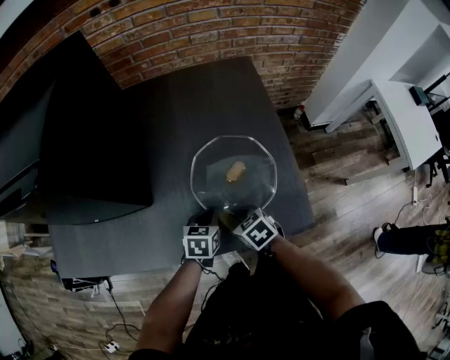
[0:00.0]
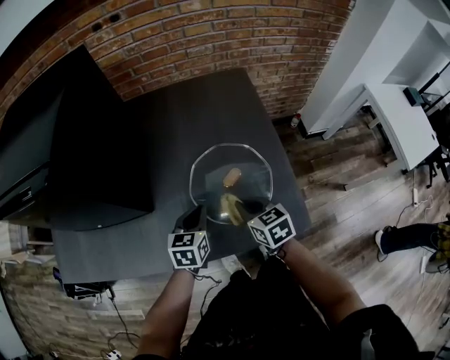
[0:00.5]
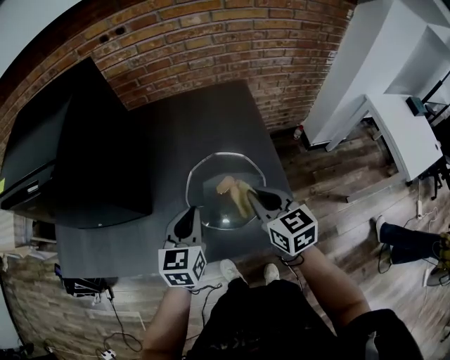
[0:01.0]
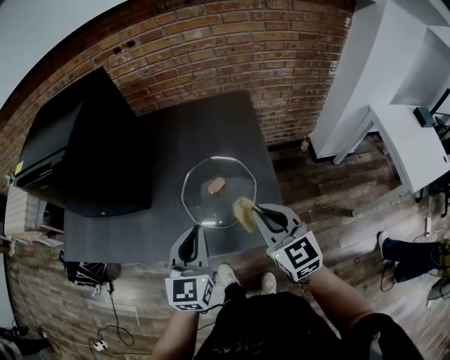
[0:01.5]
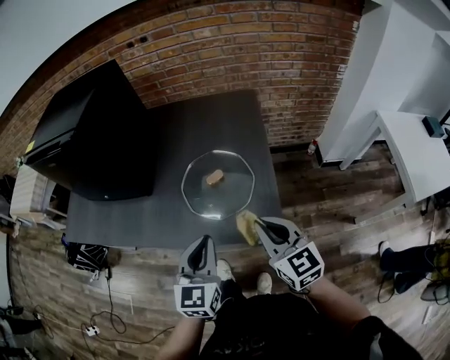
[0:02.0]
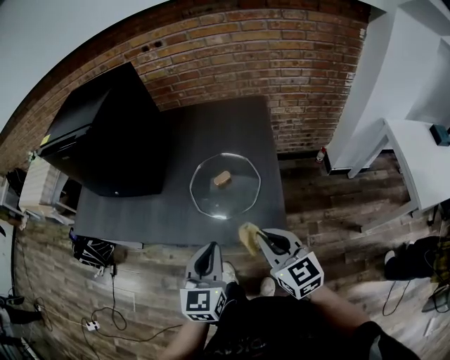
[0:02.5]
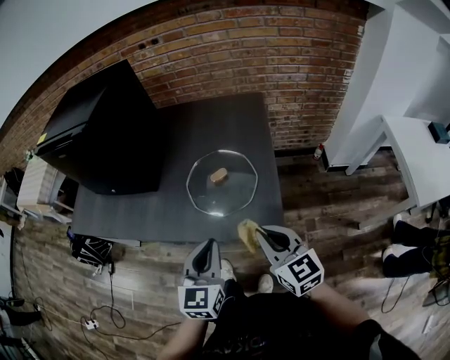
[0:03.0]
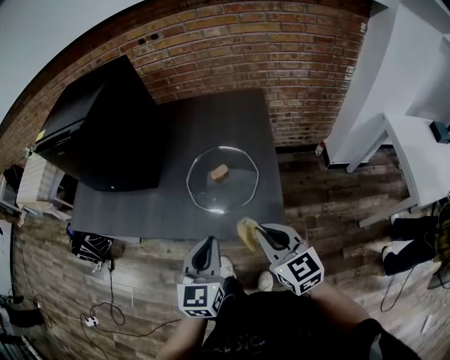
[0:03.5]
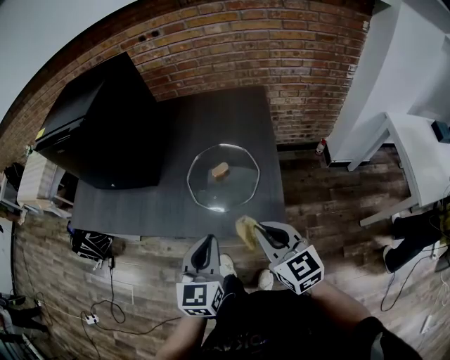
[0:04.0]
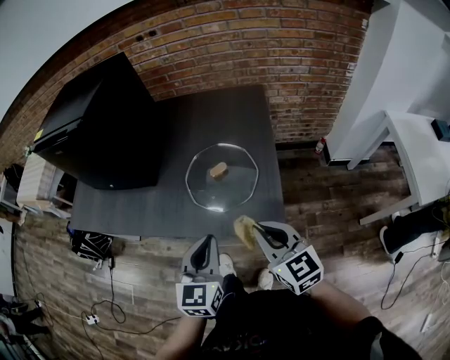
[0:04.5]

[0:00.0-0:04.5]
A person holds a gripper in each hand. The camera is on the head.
0:00.0 to 0:02.0: The left gripper moves upward and backward, about 30 cm, and tilts its fingers roughly 30 degrees upward. Meanwhile the right gripper shifts about 30 cm upward, to the right and backward, and tips its fingers upward by approximately 40 degrees.
0:02.0 to 0:04.5: The grippers make only small movements.

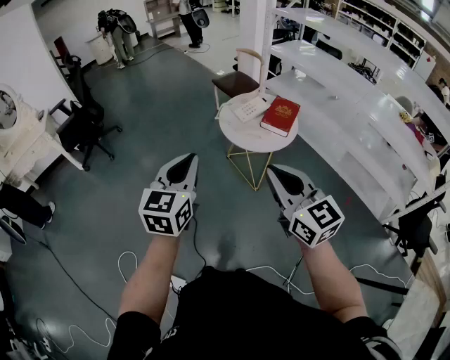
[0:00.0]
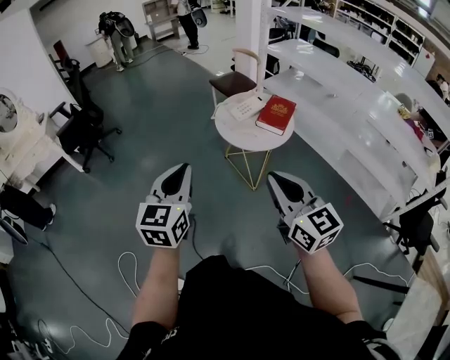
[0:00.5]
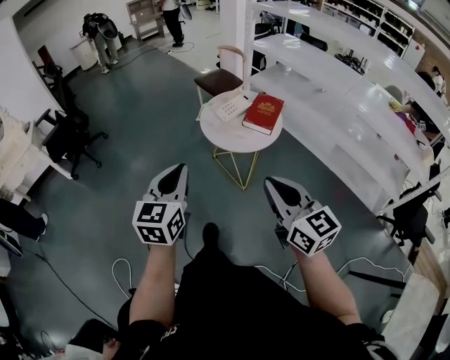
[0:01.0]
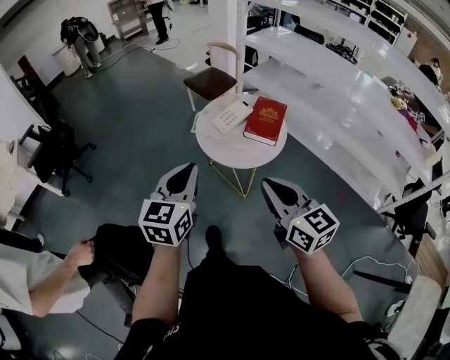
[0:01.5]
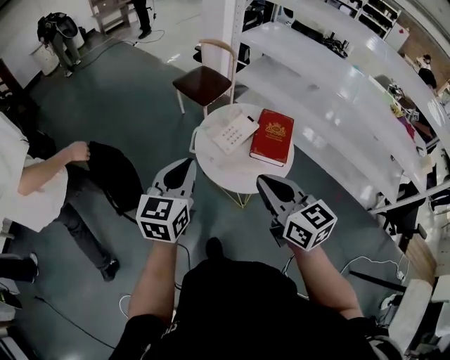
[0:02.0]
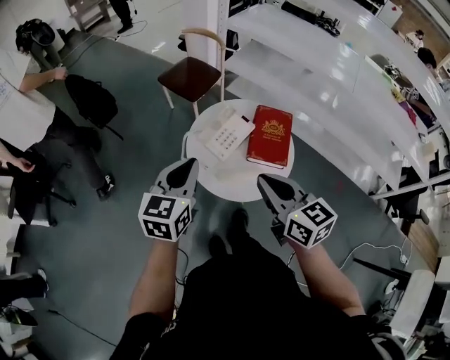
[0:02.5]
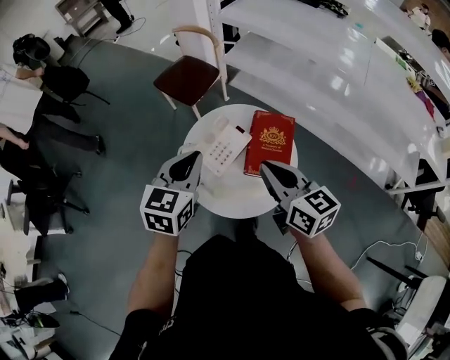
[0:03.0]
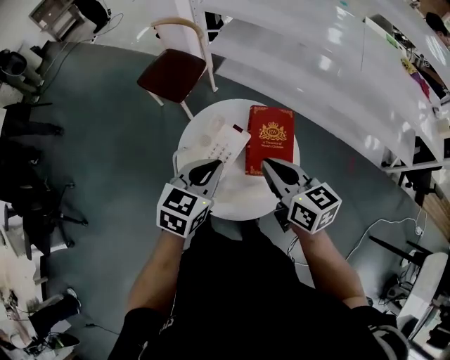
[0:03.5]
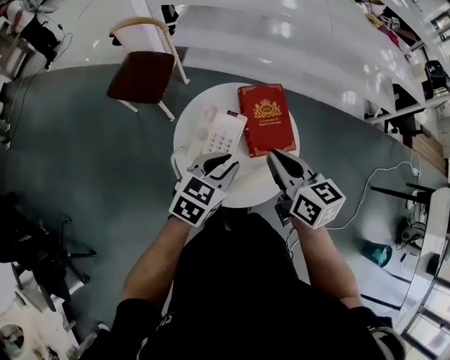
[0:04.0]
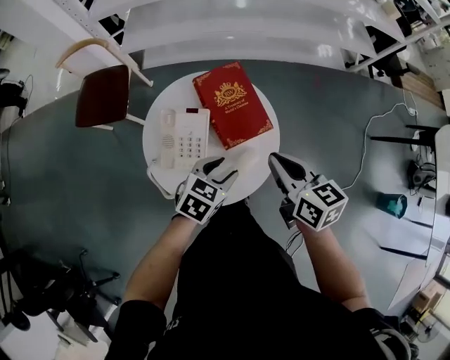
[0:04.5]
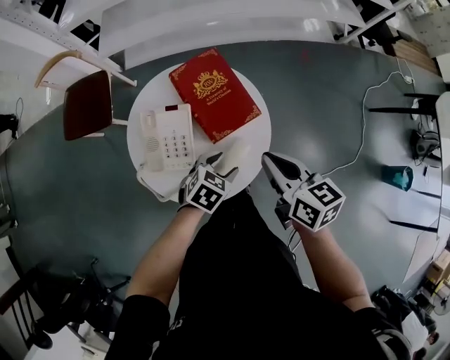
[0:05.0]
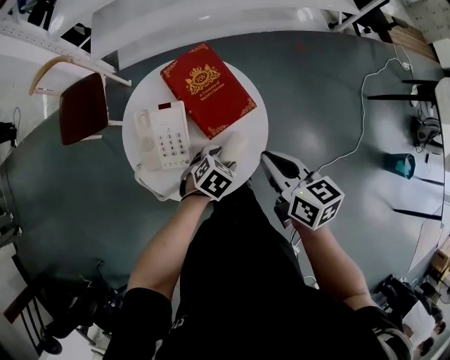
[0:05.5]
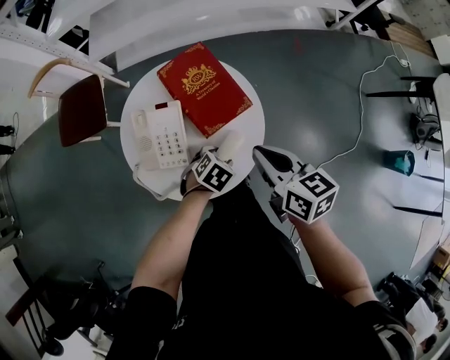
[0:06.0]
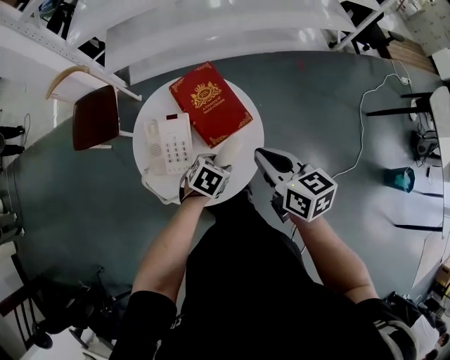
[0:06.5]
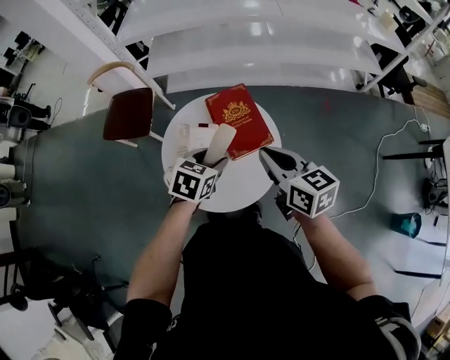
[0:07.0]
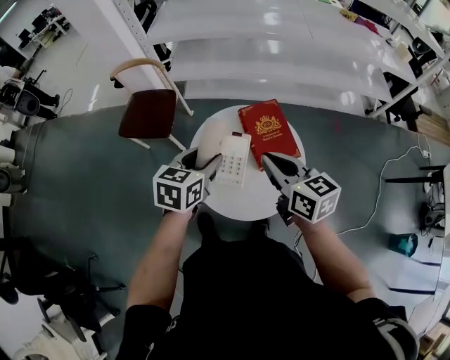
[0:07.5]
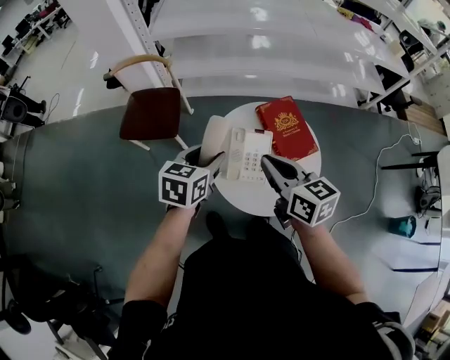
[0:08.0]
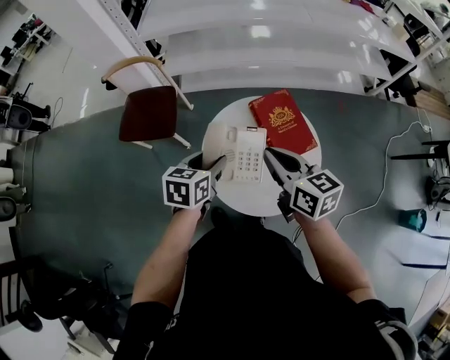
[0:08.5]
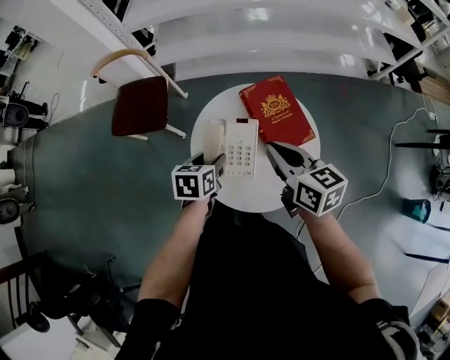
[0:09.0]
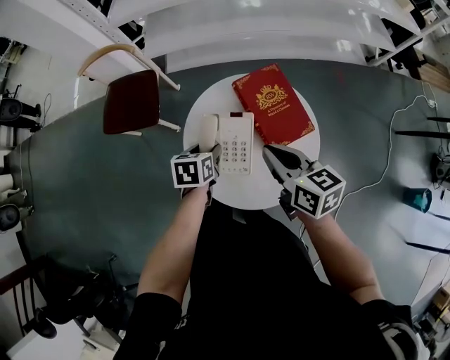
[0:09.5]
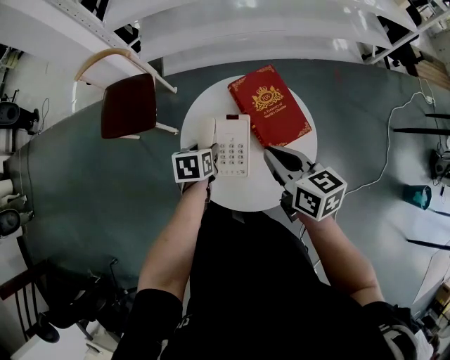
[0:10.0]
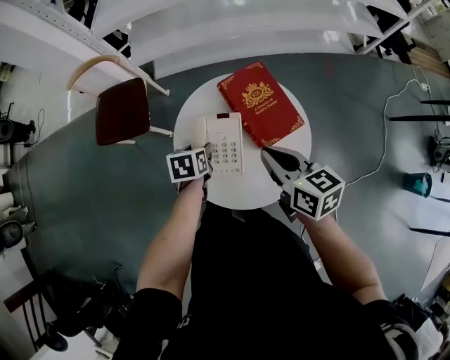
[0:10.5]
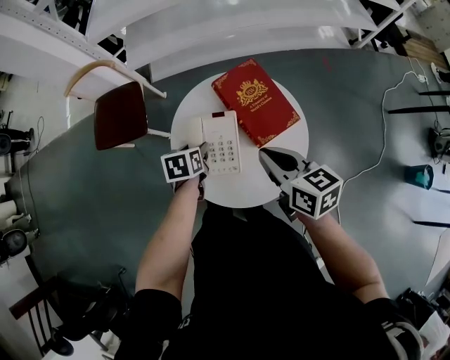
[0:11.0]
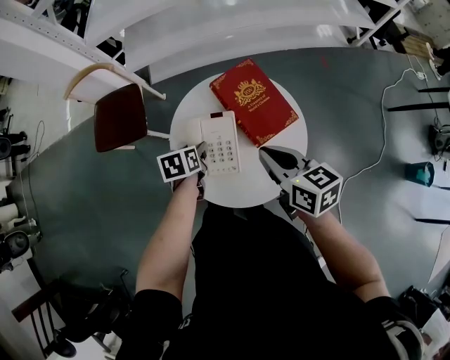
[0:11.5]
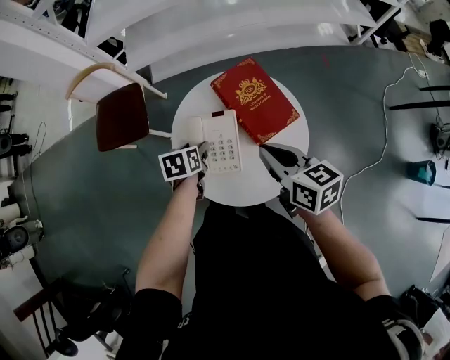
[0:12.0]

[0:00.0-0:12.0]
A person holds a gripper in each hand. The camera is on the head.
0:00.0 to 0:02.0: Both grippers move forward, some 35 cm.
0:02.0 to 0:04.0: The right gripper ends up approximately 25 cm from where it was, and rotates roughly 40 degrees; the left gripper moves roughly 30 cm, and rotates approximately 60 degrees.
0:04.0 to 0:06.0: The right gripper ends up approximately 15 cm from where it was, and rotates about 20 degrees. The left gripper is displaced downward by some 25 cm, angles its fingers downward, by some 30 degrees, and opens its fingers.
0:06.0 to 0:08.0: The right gripper ends up about 30 cm from where it was. Meanwhile the left gripper changes place by approximately 40 cm, and tilts its fingers roughly 30 degrees upward.
0:08.0 to 0:10.0: The right gripper heads to the right and downward, covering some 15 cm. Meanwhile the left gripper travels downward by approximately 20 cm, and swivels approximately 30 degrees.
0:10.0 to 0:12.0: The grippers make only small movements.

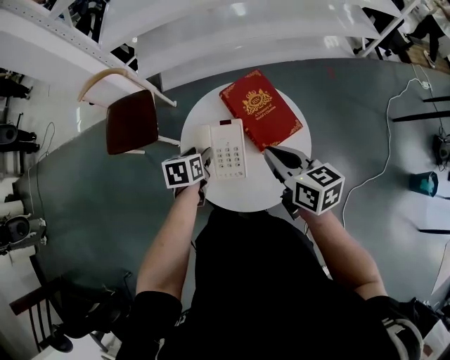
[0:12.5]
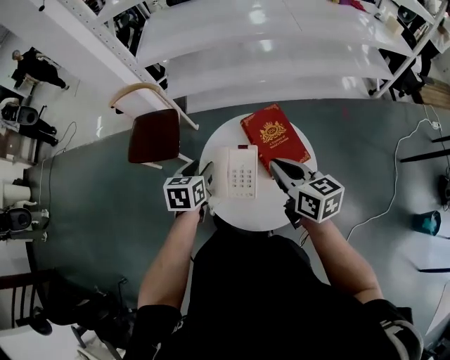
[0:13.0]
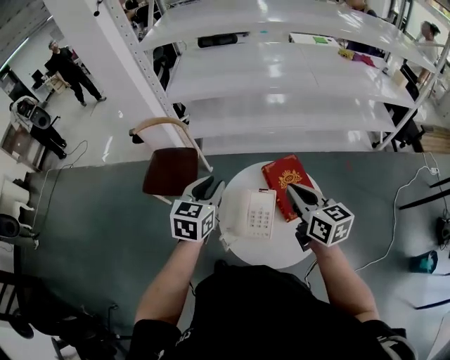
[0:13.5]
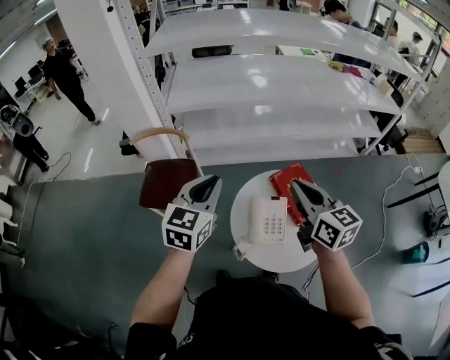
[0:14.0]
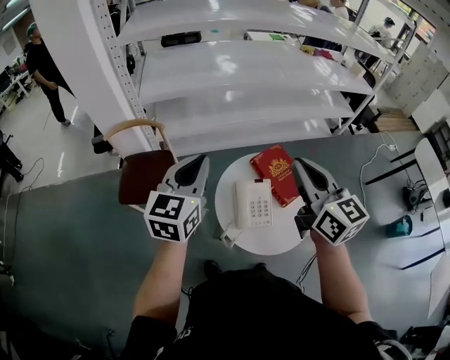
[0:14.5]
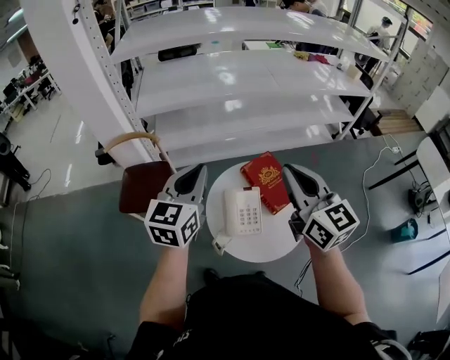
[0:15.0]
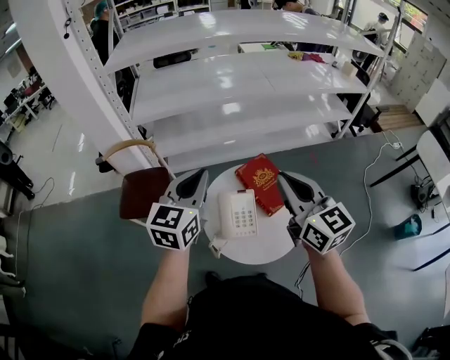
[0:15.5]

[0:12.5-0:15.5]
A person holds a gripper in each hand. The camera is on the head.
0:12.5 to 0:14.0: The right gripper travels upward and to the left by about 25 cm, and swivels some 20 degrees; the left gripper travels upward by approximately 35 cm, points its fingers approximately 40 degrees further upward, and closes.
0:14.0 to 0:15.5: The right gripper shifts about 10 cm to the right and upward; the left gripper moves to the right, approximately 10 cm.

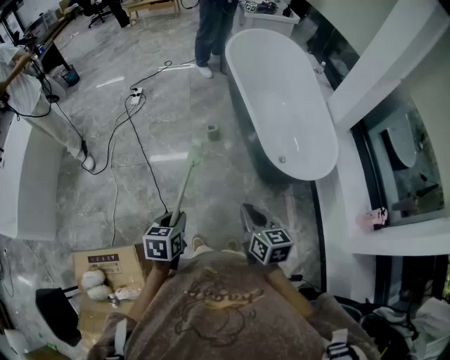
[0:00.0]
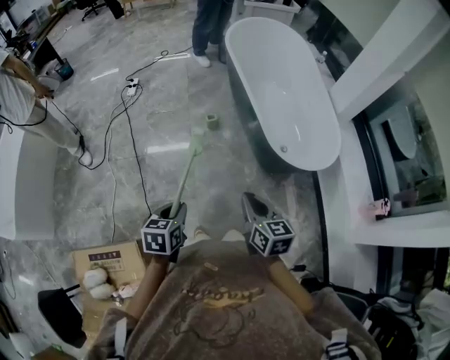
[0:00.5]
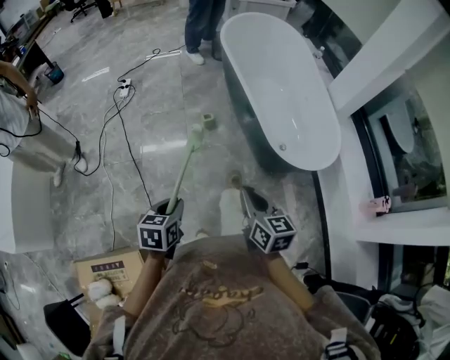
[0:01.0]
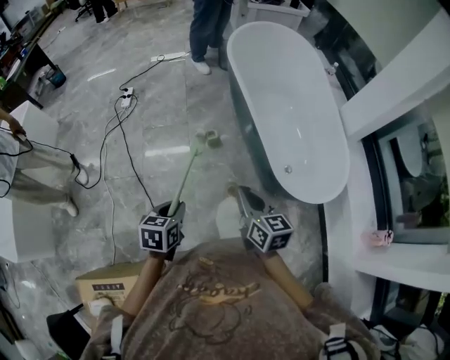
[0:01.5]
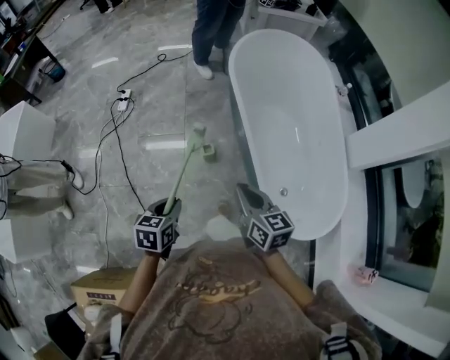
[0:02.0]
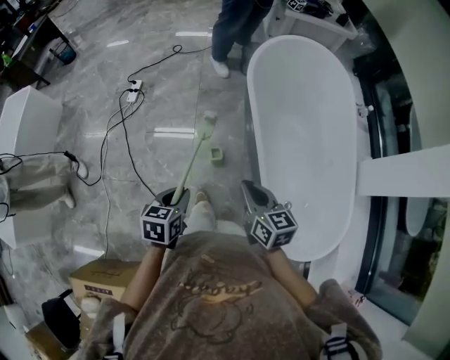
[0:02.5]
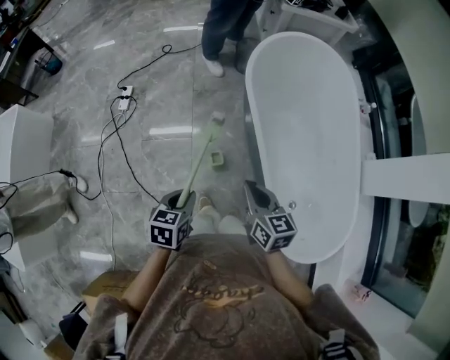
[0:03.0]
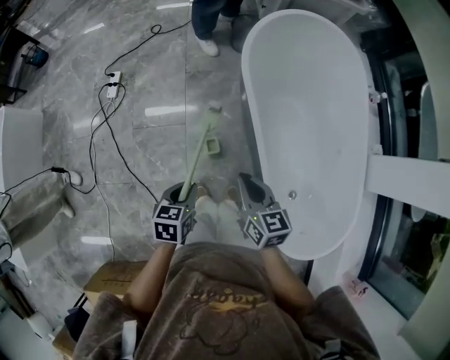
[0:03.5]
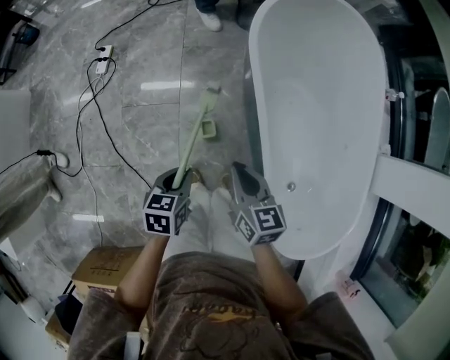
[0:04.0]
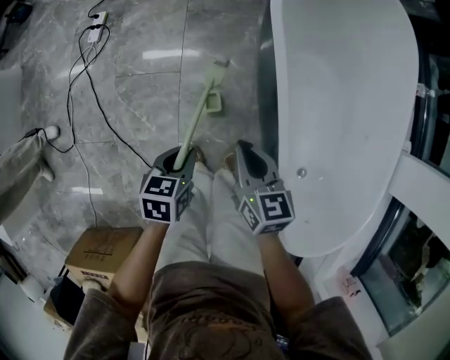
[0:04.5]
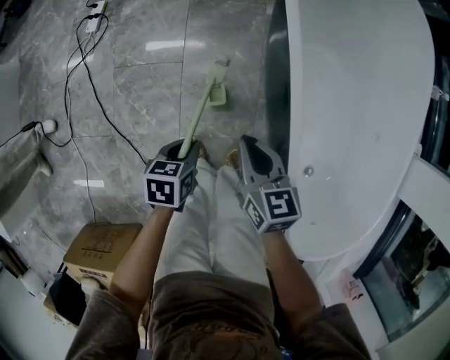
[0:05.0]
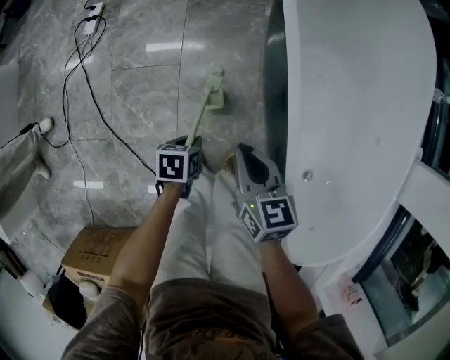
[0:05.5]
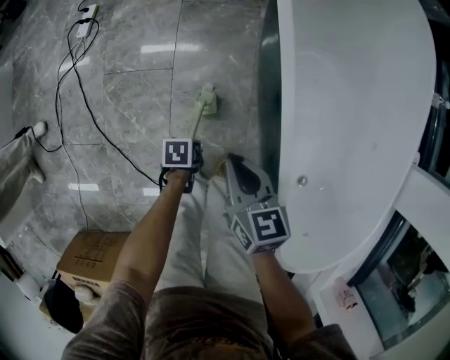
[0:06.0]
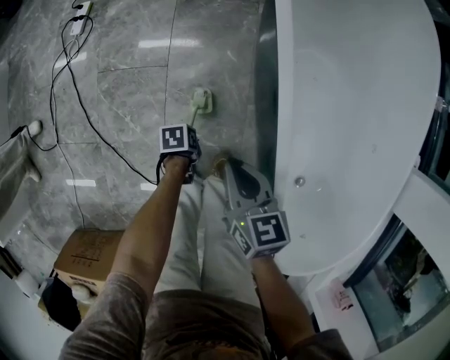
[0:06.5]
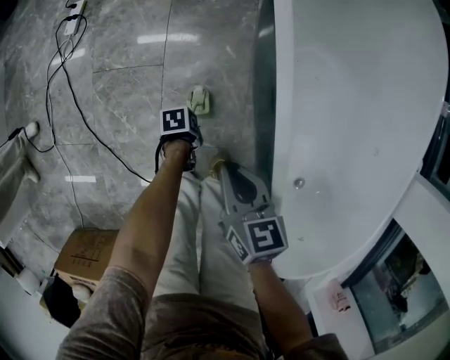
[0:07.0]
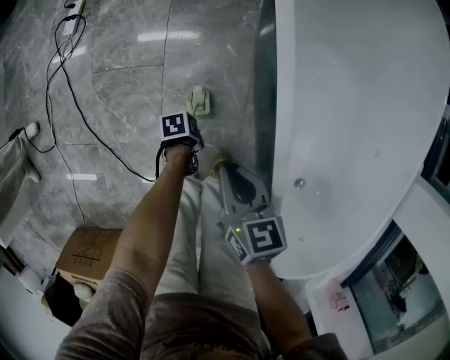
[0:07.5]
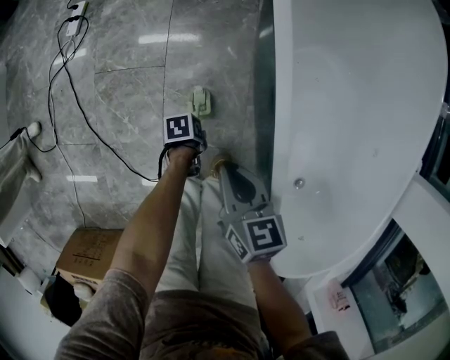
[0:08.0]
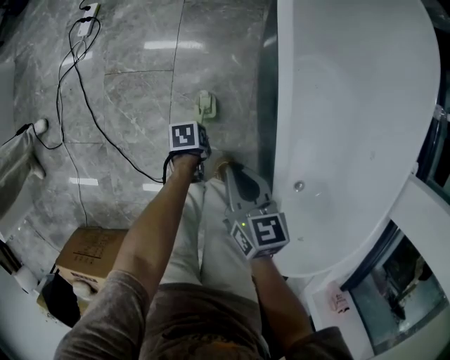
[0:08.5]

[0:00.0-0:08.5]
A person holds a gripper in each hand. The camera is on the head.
0:00.0 to 0:02.0: The pair of grippers is taken forward, approximately 40 cm.
0:02.0 to 0:04.0: The two grippers go roughly 30 cm forward and downward.
0:04.0 to 0:06.5: The left gripper moves downward, about 40 cm, and rotates roughly 50 degrees. Meanwhile the right gripper is displaced downward by some 20 cm.
0:06.5 to 0:08.5: The grippers stay close to where they were, moving slightly.
